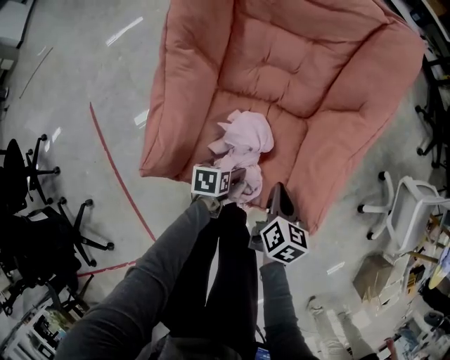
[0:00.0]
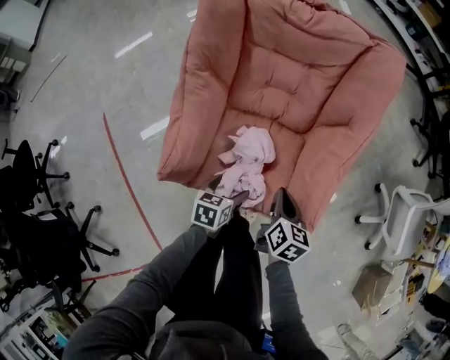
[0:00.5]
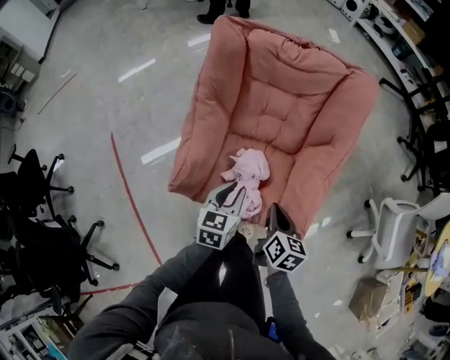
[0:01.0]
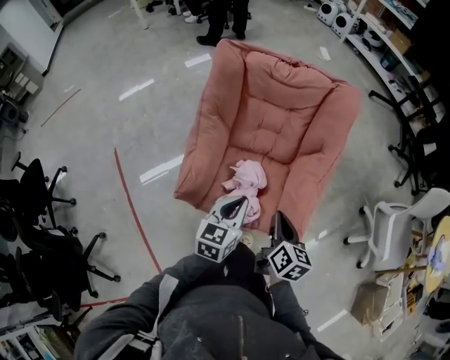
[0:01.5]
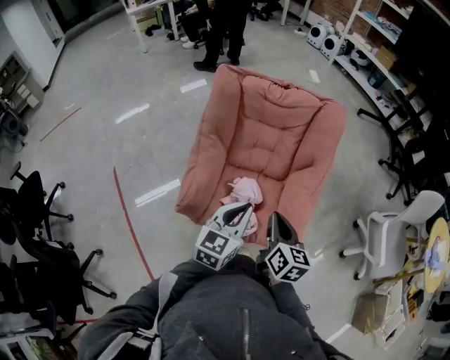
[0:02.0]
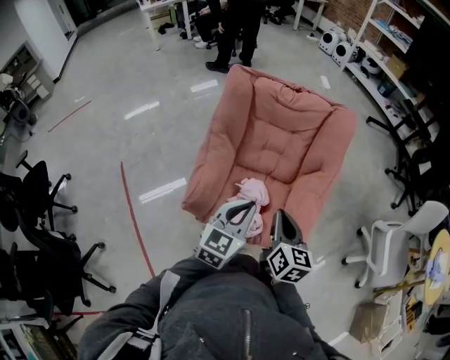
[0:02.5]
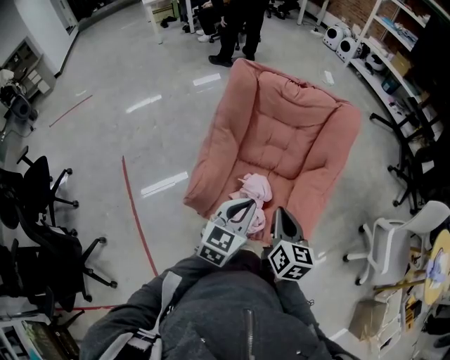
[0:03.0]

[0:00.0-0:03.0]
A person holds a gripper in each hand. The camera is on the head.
0:00.0 to 0:01.5: The left gripper is displaced upward by roughly 35 cm, tilts its fingers roughly 40 degrees upward, and closes up; the right gripper shifts approximately 20 cm upward.
0:01.5 to 0:03.0: Both grippers move upward, some 5 cm.

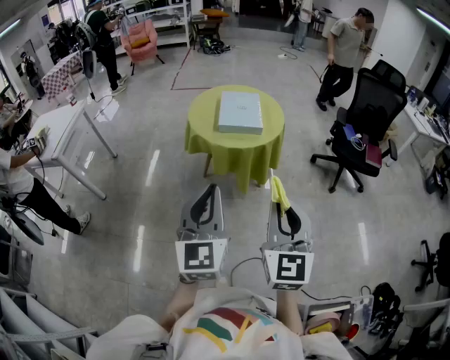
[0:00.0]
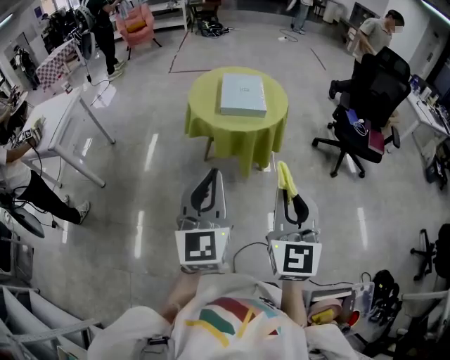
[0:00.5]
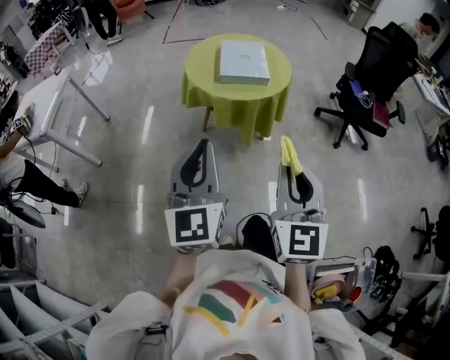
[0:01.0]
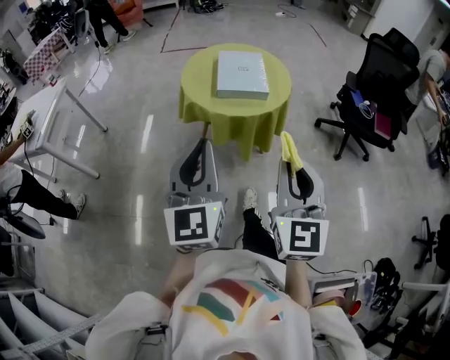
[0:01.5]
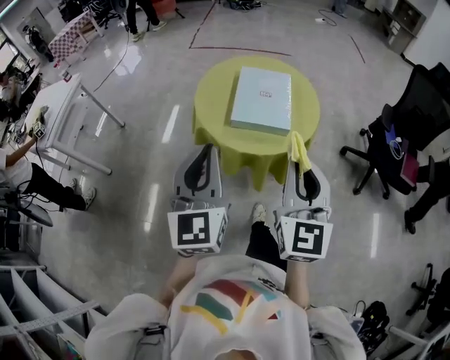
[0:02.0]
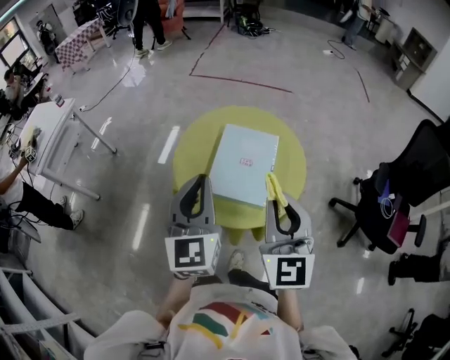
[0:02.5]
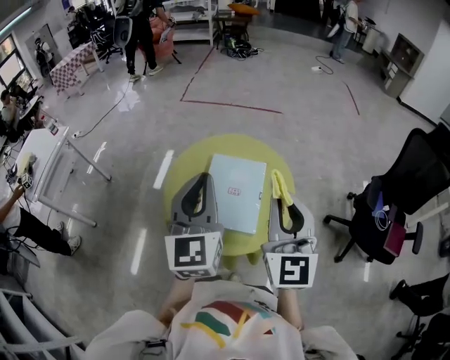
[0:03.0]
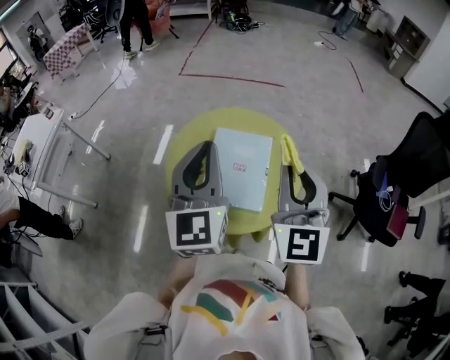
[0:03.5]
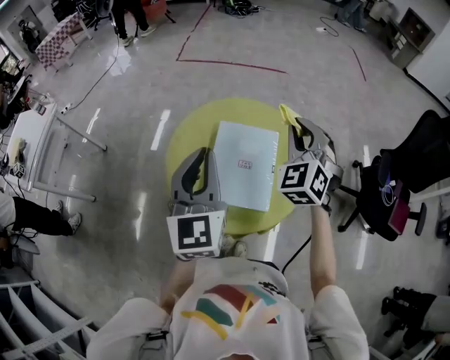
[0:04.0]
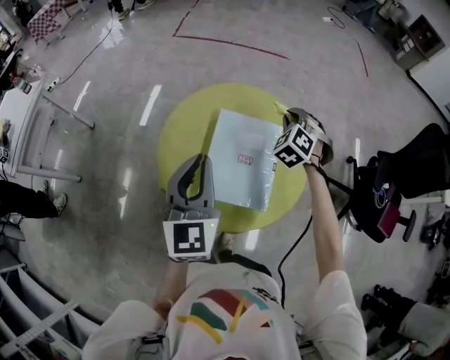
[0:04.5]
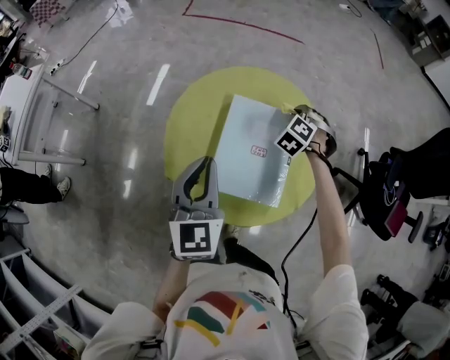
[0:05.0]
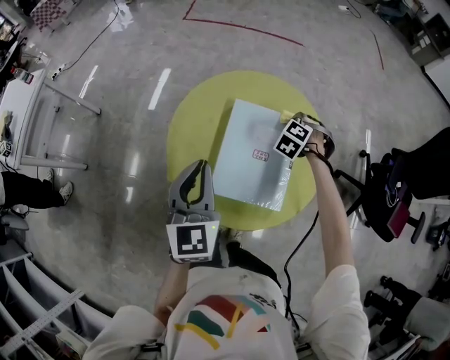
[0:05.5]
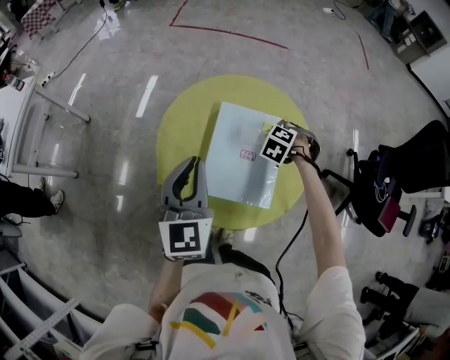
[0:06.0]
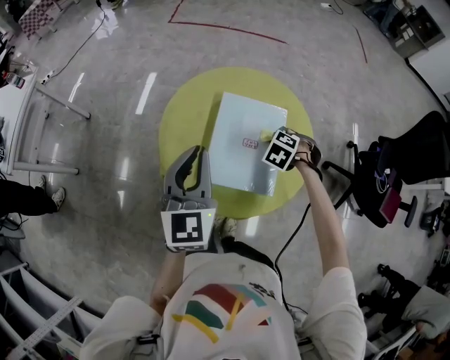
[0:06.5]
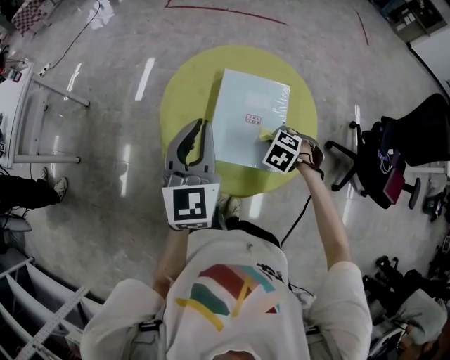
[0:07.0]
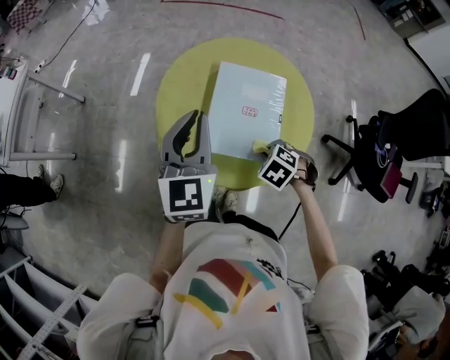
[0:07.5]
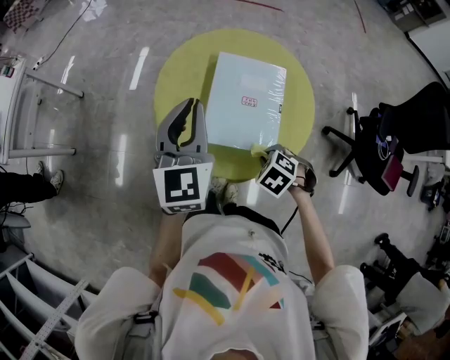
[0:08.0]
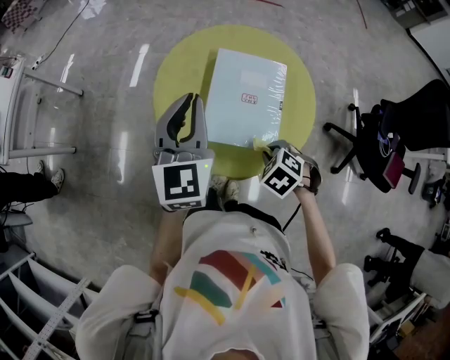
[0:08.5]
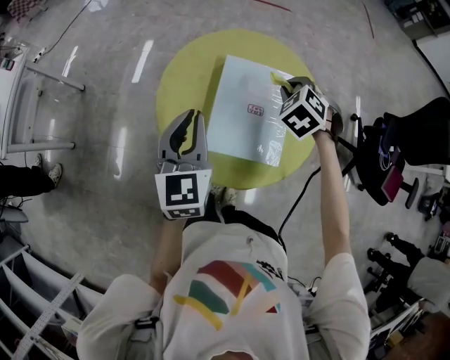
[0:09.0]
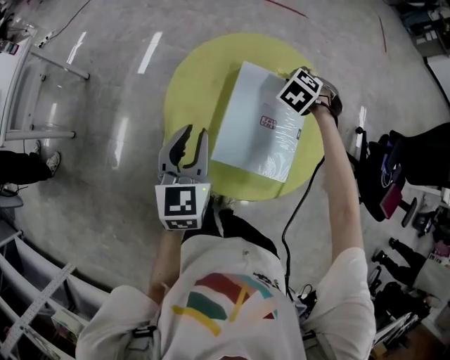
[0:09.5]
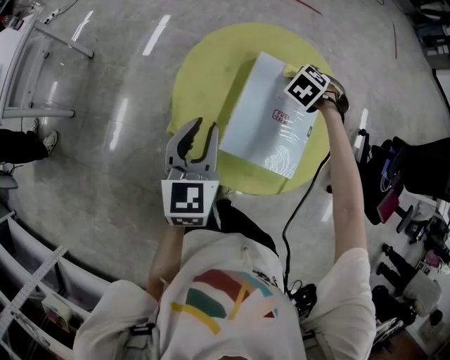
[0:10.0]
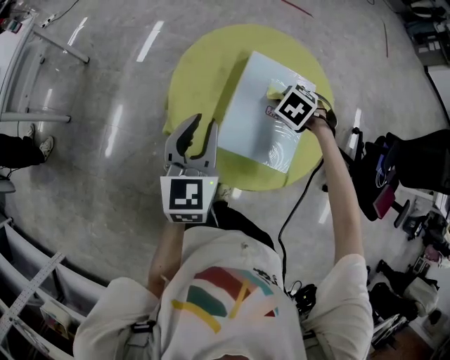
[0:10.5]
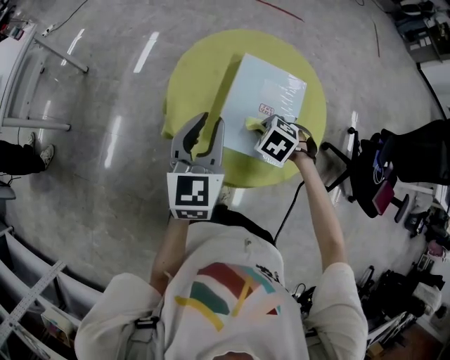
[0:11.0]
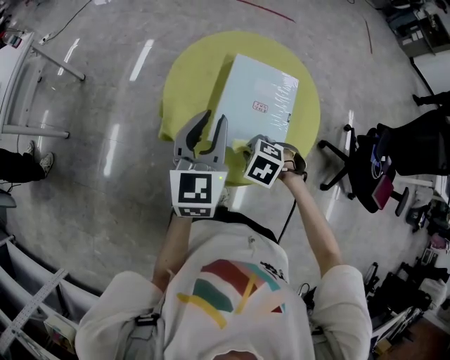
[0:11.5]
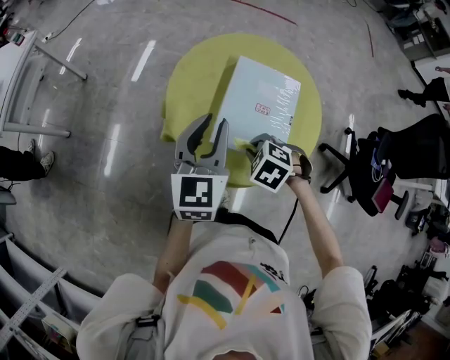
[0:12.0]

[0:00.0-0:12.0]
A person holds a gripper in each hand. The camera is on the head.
0:00.0 to 0:02.0: Both grippers travel together forward, about 30 cm.
0:02.0 to 0:04.0: The two grippers go about 35 cm forward. The right gripper rotates around the line of its fingers by about 40 degrees, counterclockwise from behind.
0:04.0 to 0:06.0: The left gripper goes about 10 cm downward, while the right gripper shifts roughly 30 cm downward, and points its fingers some 50 degrees further downward.
0:06.0 to 0:08.0: The right gripper shifts by some 25 cm, and changes its angle by some 20 degrees.
0:08.0 to 0:10.0: The left gripper is displaced downward by some 10 cm. The right gripper travels upward and back again, about 10 cm each way.
0:10.0 to 0:12.0: The left gripper shifts approximately 5 cm upward, while the right gripper changes place by about 30 cm.

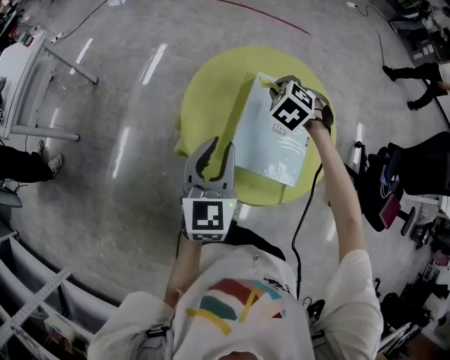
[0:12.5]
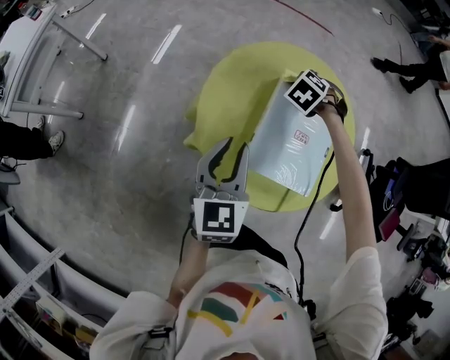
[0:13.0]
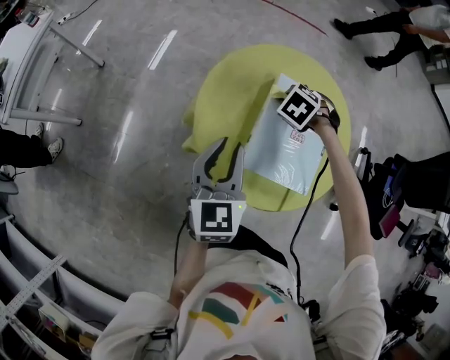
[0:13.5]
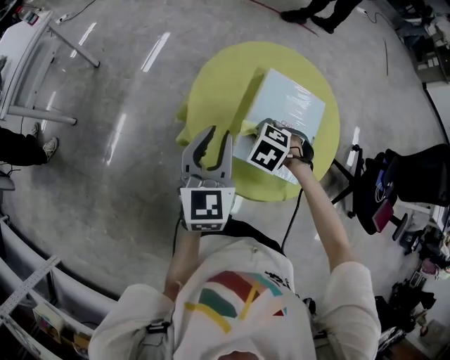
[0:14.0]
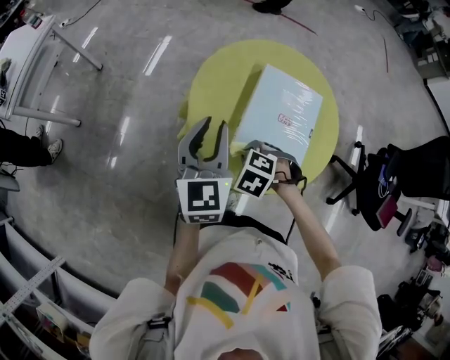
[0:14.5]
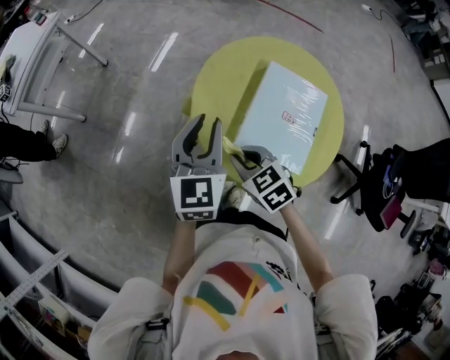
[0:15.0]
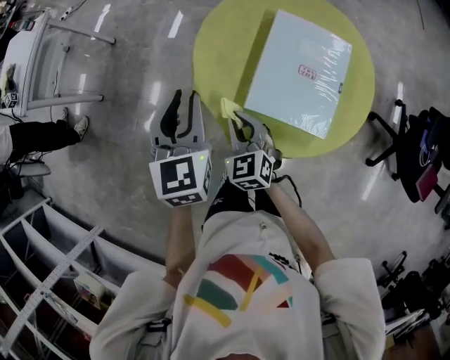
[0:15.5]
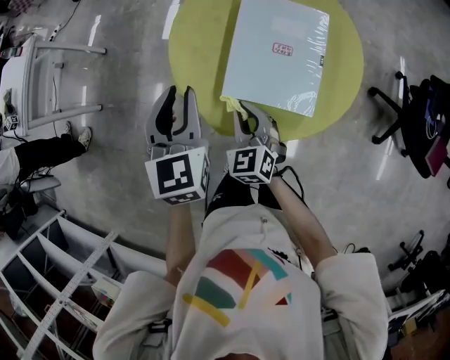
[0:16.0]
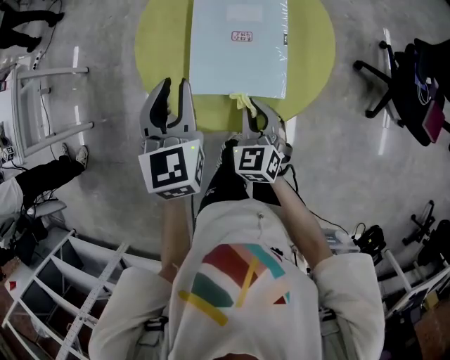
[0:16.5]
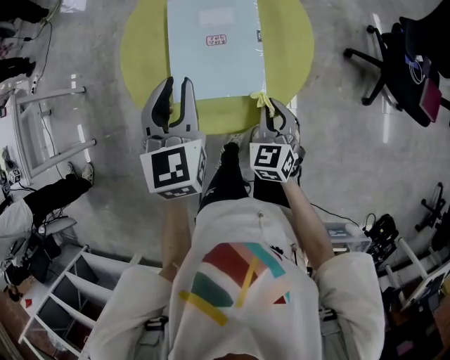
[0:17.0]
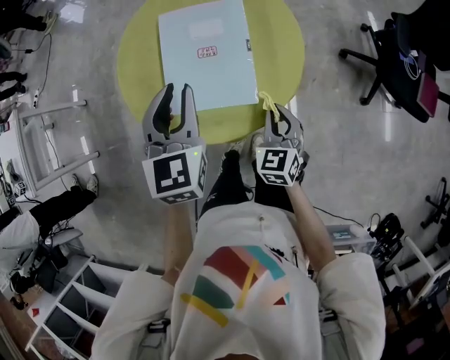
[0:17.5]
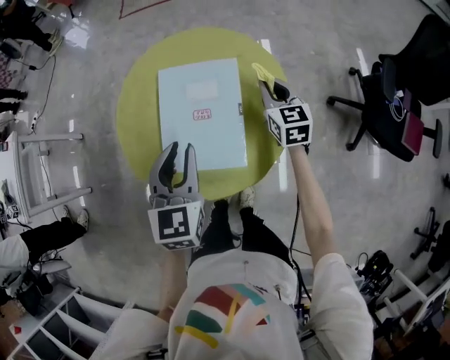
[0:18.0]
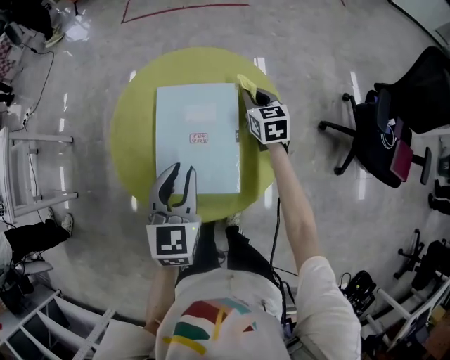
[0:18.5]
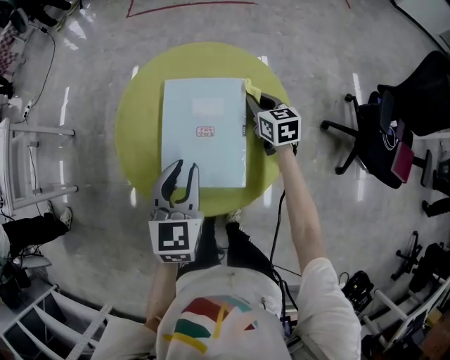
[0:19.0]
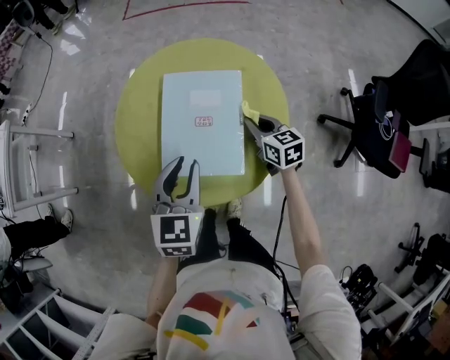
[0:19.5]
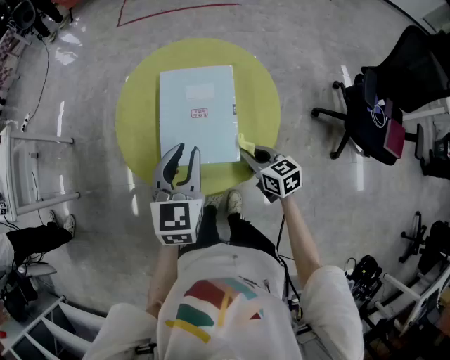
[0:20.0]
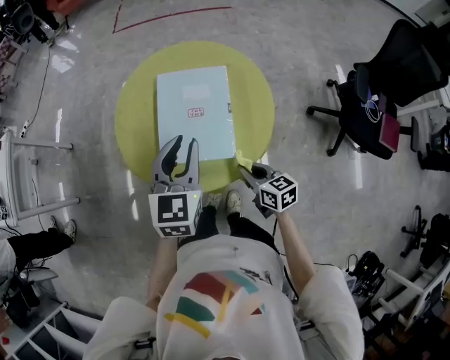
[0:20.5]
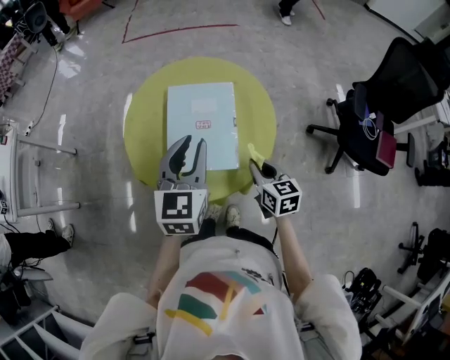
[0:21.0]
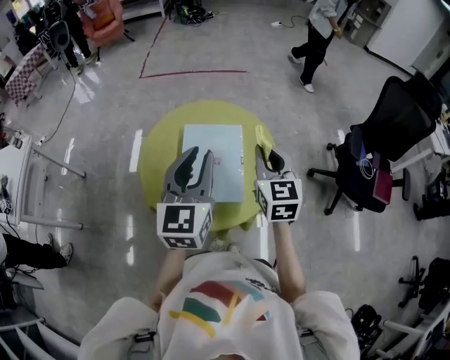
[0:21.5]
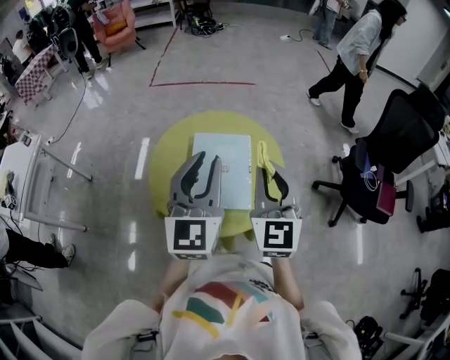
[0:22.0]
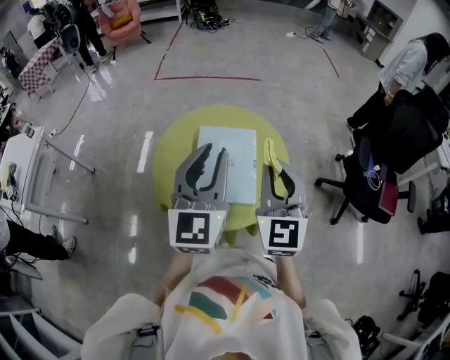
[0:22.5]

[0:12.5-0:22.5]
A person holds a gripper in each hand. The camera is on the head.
0:12.5 to 0:14.5: The right gripper moves roughly 25 cm, and swivels roughly 20 degrees.
0:14.5 to 0:16.5: The right gripper shifts by approximately 10 cm, and points its fingers roughly 50 degrees further upward; the left gripper changes place by approximately 10 cm.
0:16.5 to 0:18.5: The left gripper travels to the right by roughly 10 cm. The right gripper goes approximately 35 cm forward and to the right, and changes its angle by some 20 degrees.
0:18.5 to 0:20.5: The right gripper travels backward by some 30 cm, and changes its angle by some 30 degrees. The left gripper shifts by some 5 cm.
0:20.5 to 0:22.5: The right gripper is displaced upward by roughly 35 cm, and rotates roughly 60 degrees. Meanwhile the left gripper heads upward, covering approximately 20 cm, and turns by approximately 30 degrees.

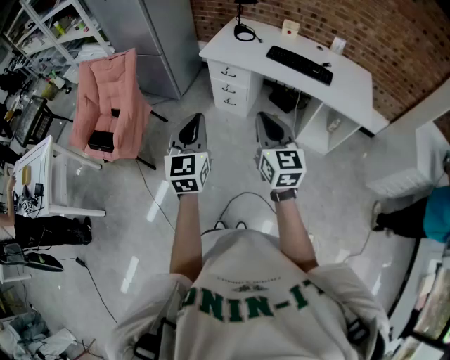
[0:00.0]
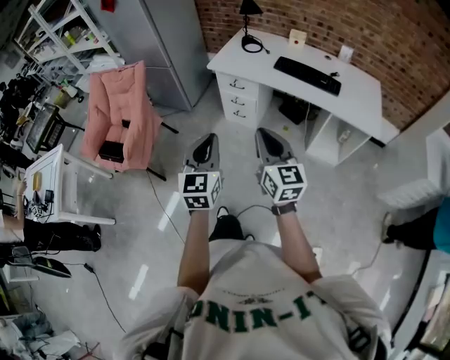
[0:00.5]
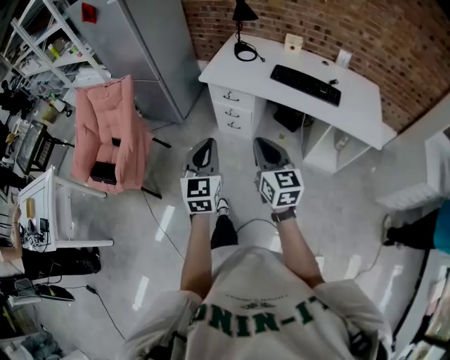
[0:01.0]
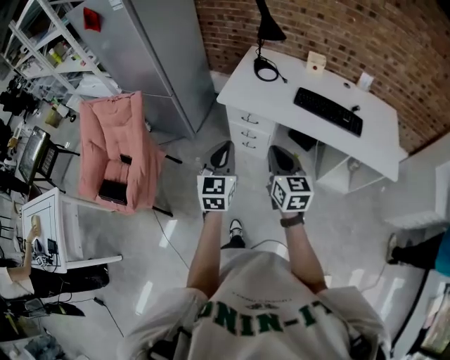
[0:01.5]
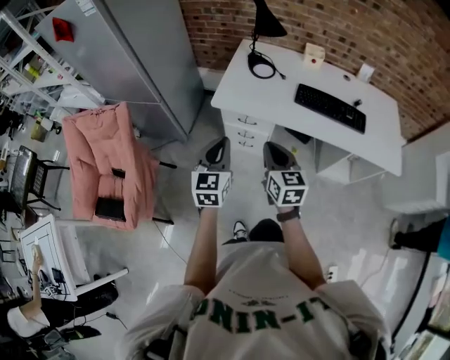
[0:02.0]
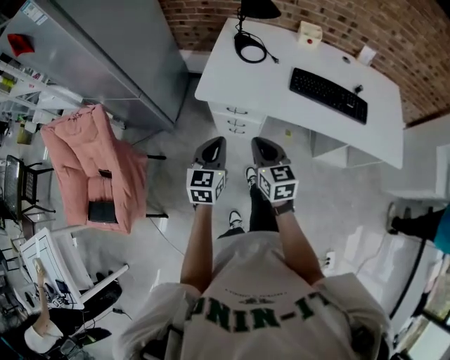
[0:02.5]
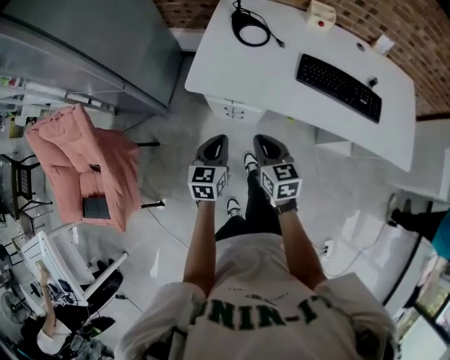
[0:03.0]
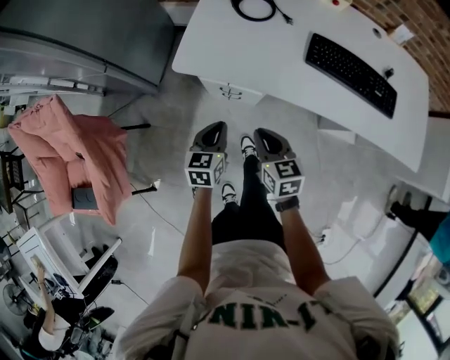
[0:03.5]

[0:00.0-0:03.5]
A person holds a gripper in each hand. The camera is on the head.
0:00.0 to 0:02.0: The two grippers go some 40 cm forward.
0:02.0 to 0:03.5: Both grippers travel together downward and forward, roughly 30 cm. The right gripper changes its angle by roughly 20 degrees. Meanwhile the left gripper turns by roughly 30 degrees.
